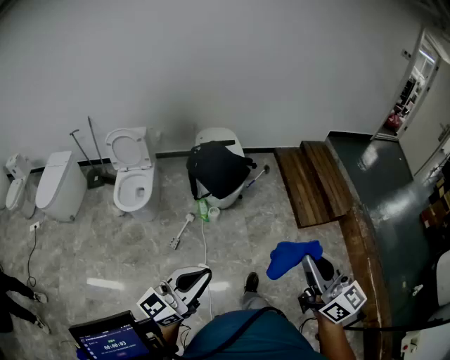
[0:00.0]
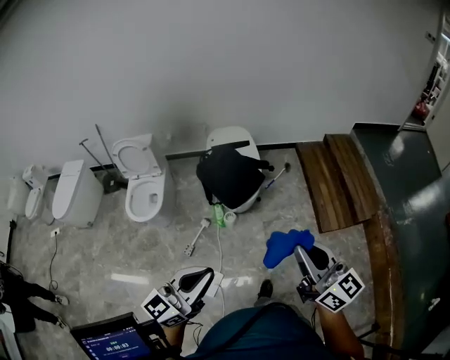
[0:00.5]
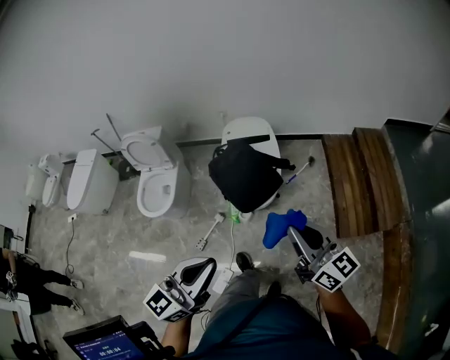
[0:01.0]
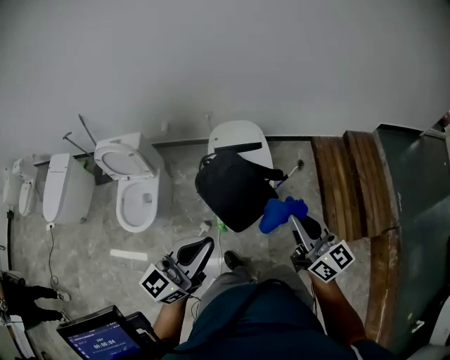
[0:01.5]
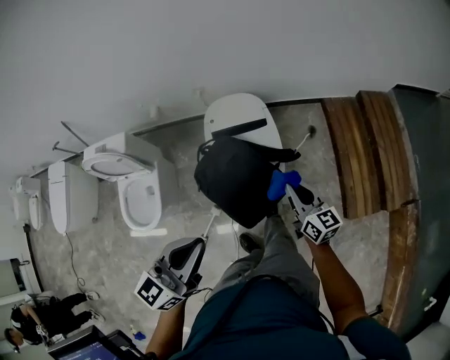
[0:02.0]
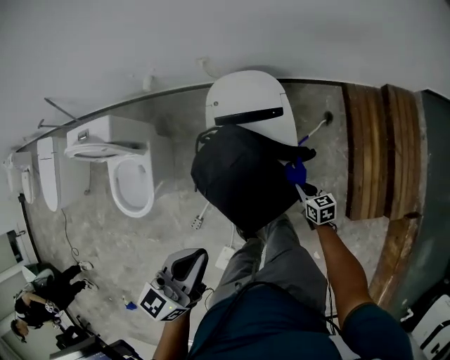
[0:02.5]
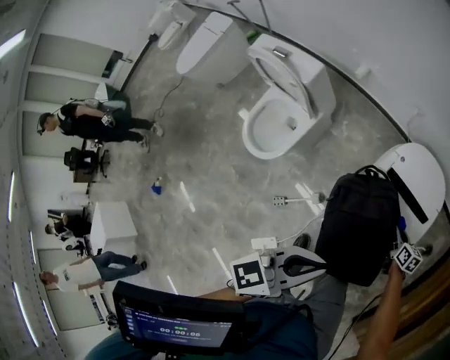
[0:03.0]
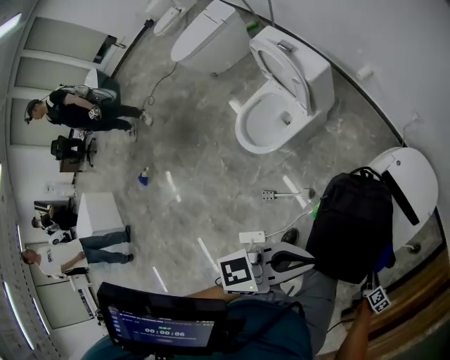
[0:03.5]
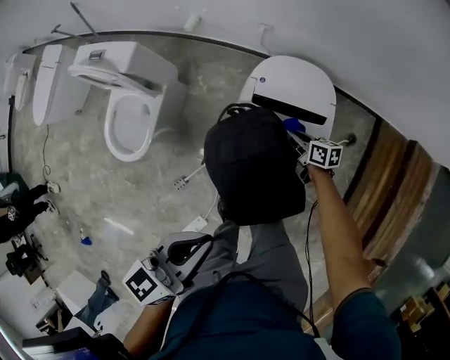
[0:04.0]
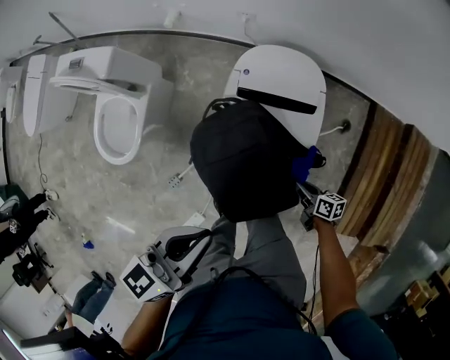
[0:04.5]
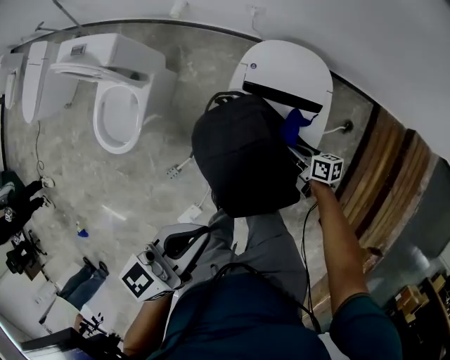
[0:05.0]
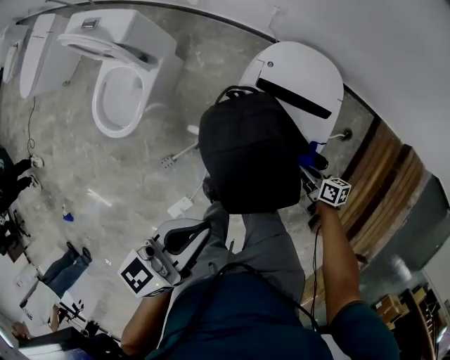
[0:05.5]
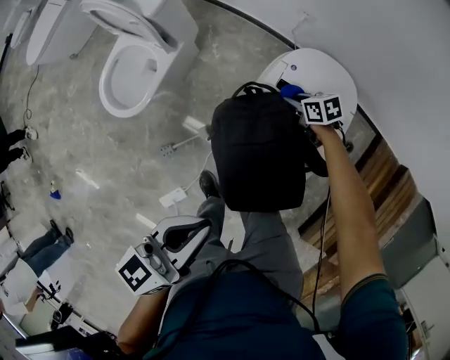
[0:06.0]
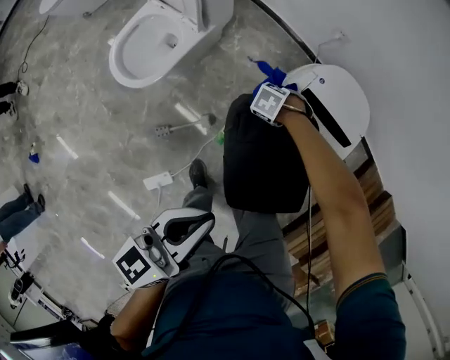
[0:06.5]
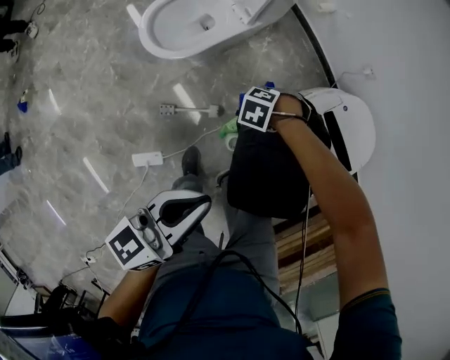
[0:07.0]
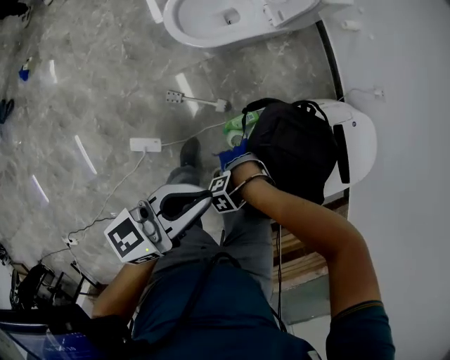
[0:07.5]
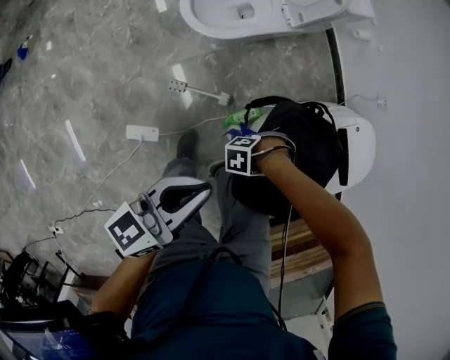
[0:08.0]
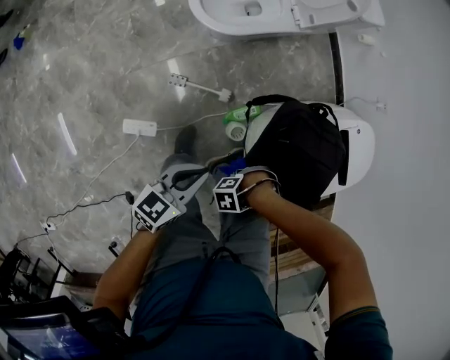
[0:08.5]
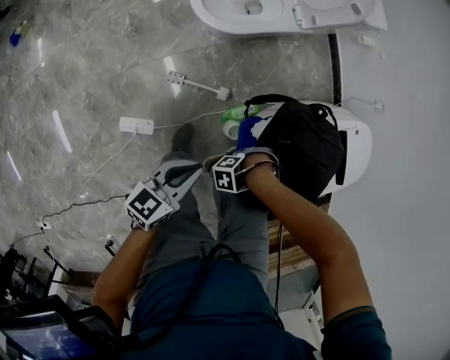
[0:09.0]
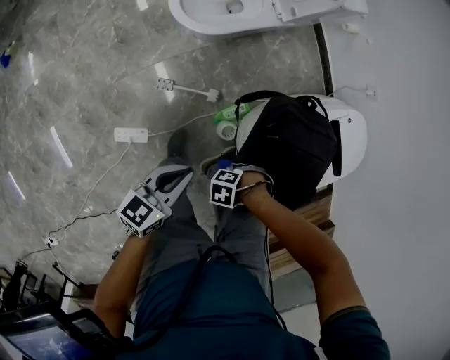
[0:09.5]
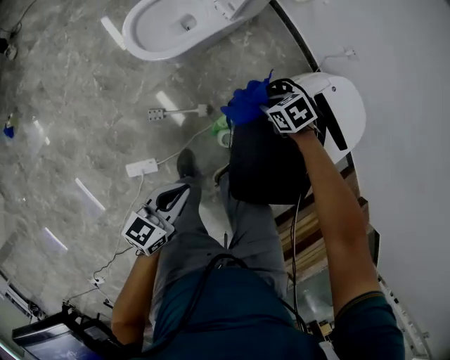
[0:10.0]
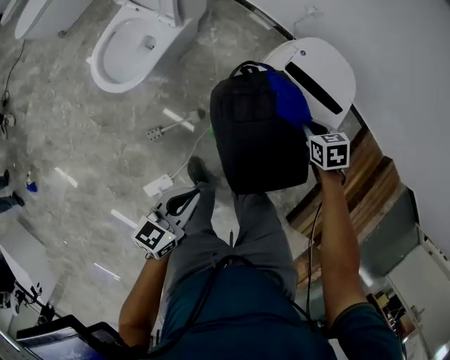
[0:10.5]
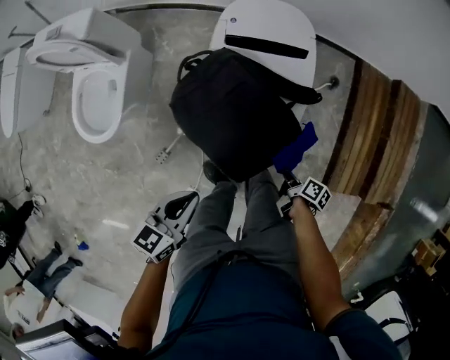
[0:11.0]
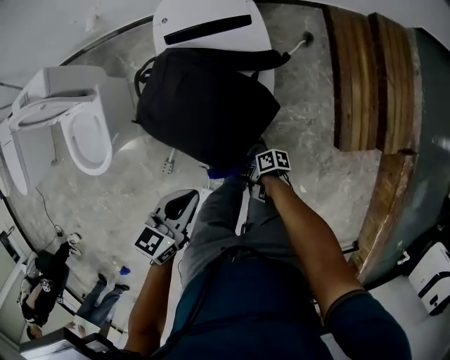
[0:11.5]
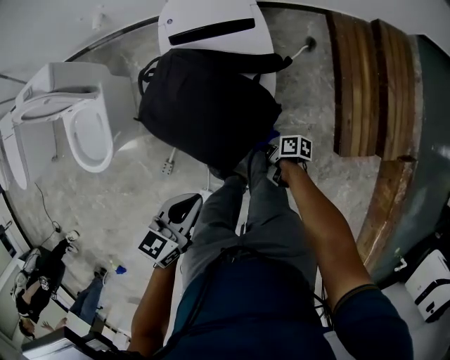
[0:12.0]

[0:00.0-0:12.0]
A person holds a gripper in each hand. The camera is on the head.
0:00.0 to 0:02.0: Both grippers are carried forward, about 70 cm. The left gripper swivels approximately 20 degrees. Meanwhile the right gripper heads downward, covering some 35 cm, and changes its angle by about 20 degrees.
0:02.0 to 0:04.0: The right gripper moves downward, approximately 30 cm, and rotates some 50 degrees; the left gripper moves downward, approximately 10 cm, and swivels roughly 30 degrees.
0:04.0 to 0:06.0: The right gripper swings forward and backward, roughly 30 cm each way, with 3 reversals, and changes its angle by approximately 40 degrees.
0:06.0 to 0:08.0: The right gripper shifts by approximately 35 cm, and rotates some 120 degrees. Meanwhile the left gripper moves some 20 cm, and rotates approximately 30 degrees.
0:08.0 to 0:10.0: The right gripper changes place by about 20 cm, and swivels approximately 80 degrees. The left gripper heads downward, covering roughly 10 cm, and turns by some 20 degrees.
0:10.0 to 0:12.0: The left gripper ends up about 20 cm from where it was, and turns by roughly 50 degrees; the right gripper ends up about 40 cm from where it was, and twists some 110 degrees clockwise, seen from behind.

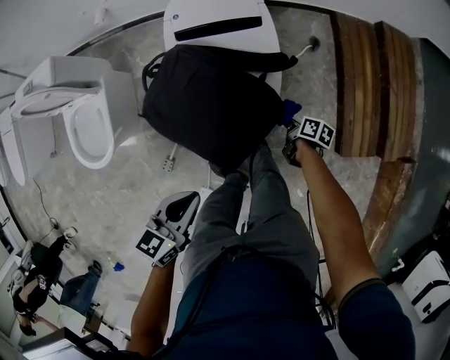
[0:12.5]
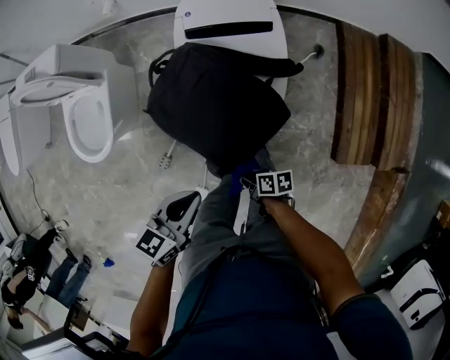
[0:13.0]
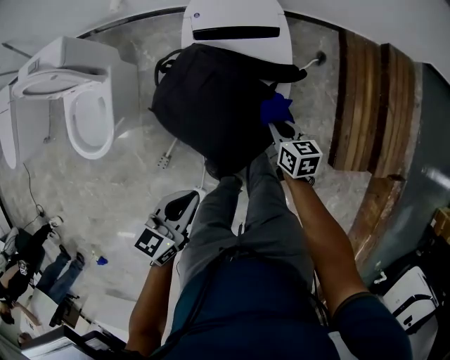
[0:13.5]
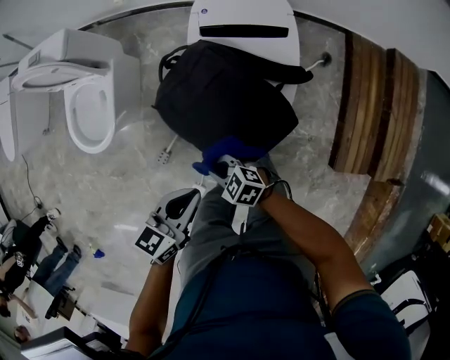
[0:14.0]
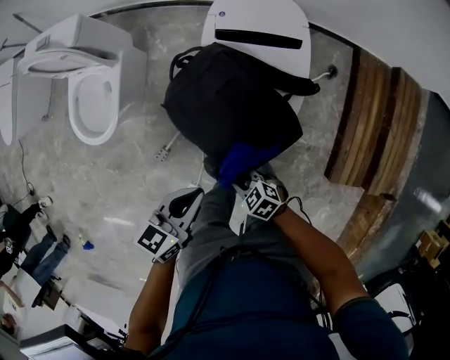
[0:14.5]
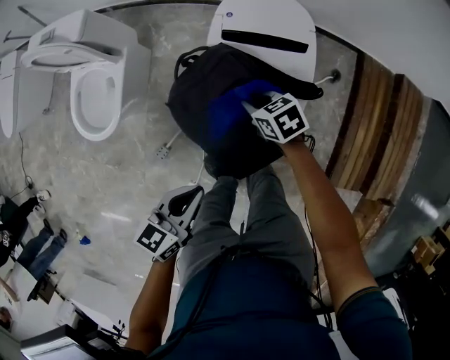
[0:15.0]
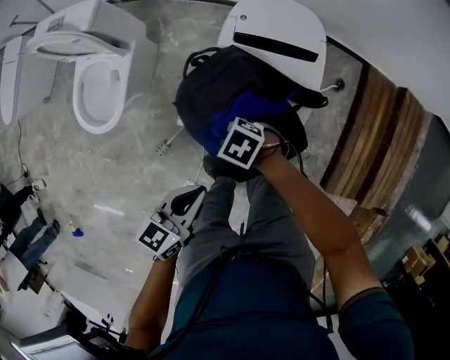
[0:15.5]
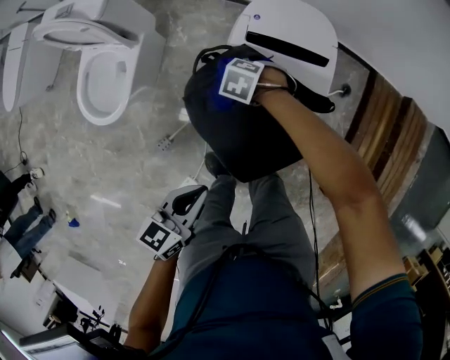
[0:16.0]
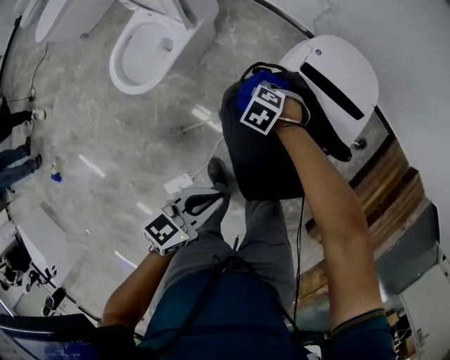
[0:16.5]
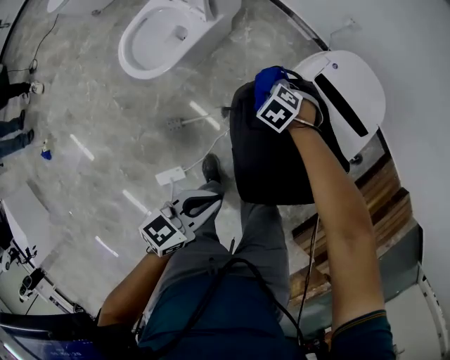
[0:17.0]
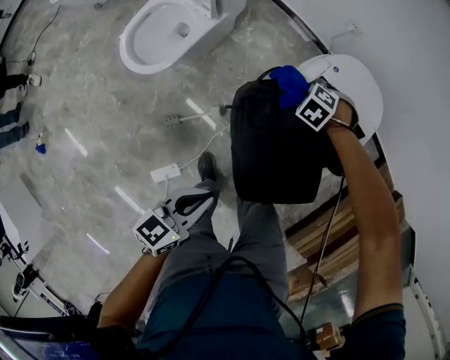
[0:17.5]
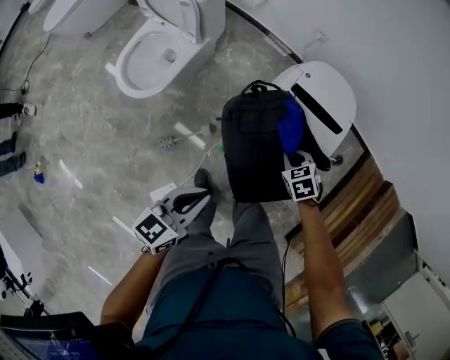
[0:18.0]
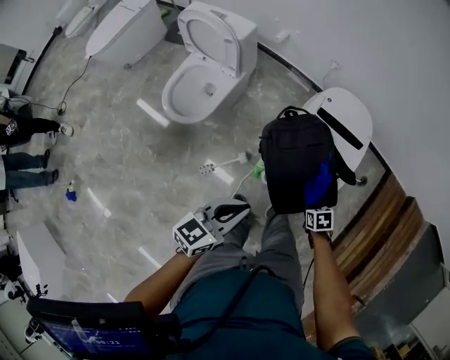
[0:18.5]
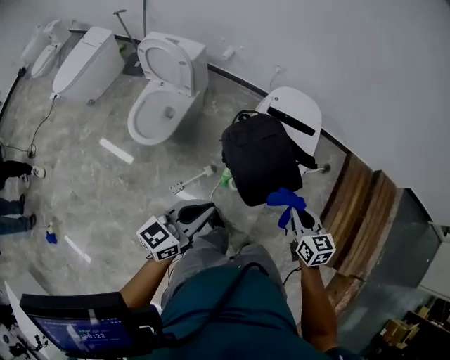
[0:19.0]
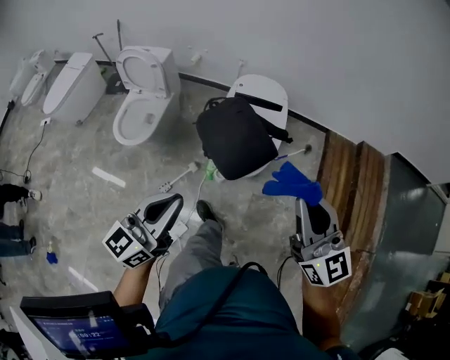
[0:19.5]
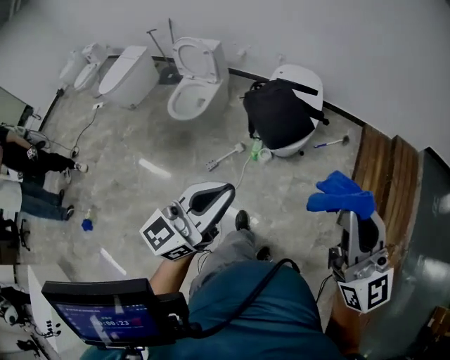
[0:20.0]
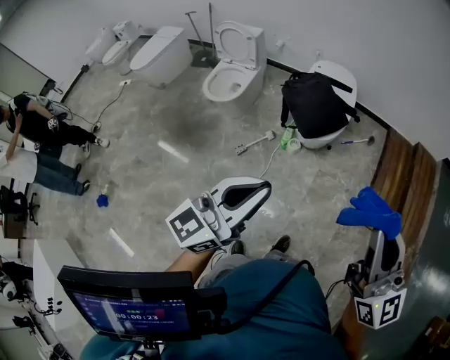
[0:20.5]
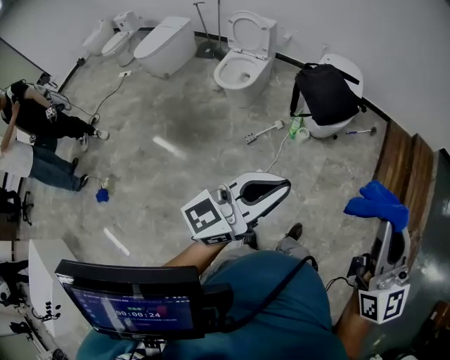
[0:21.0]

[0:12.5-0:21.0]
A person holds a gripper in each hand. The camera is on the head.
0:12.5 to 0:14.5: The right gripper ends up roughly 30 cm from where it was, and rolls counterclockwise, seen from behind, by roughly 90 degrees.
0:14.5 to 0:16.5: The right gripper moves roughly 35 cm, and rotates about 40 degrees.
0:16.5 to 0:19.0: The left gripper heads upward, covering approximately 20 cm, and changes its angle by approximately 20 degrees. The right gripper shifts by some 50 cm, and tilts its fingers roughly 40 degrees upward.
0:19.0 to 0:21.0: Both grippers are carried backward, about 60 cm. The right gripper moves upward, some 40 cm, and tips its fingers upward by some 40 degrees, while the left gripper heads upward, covering some 25 cm, and swivels about 20 degrees.

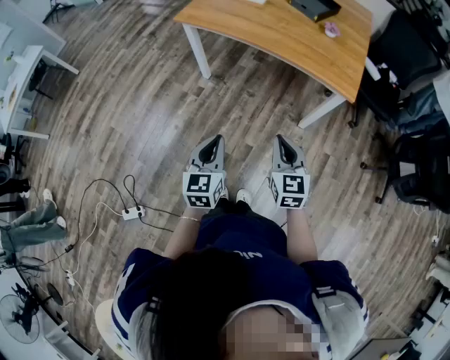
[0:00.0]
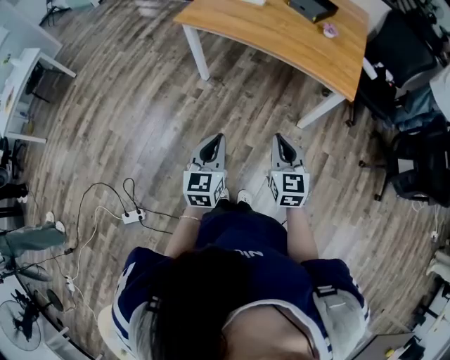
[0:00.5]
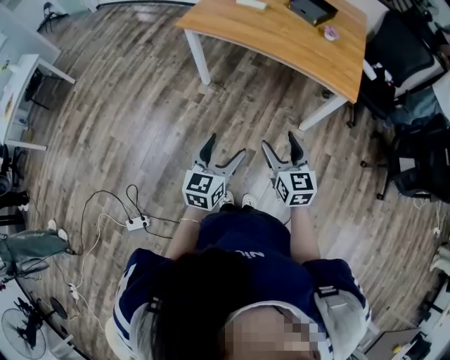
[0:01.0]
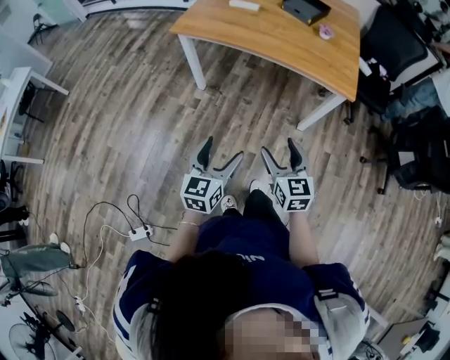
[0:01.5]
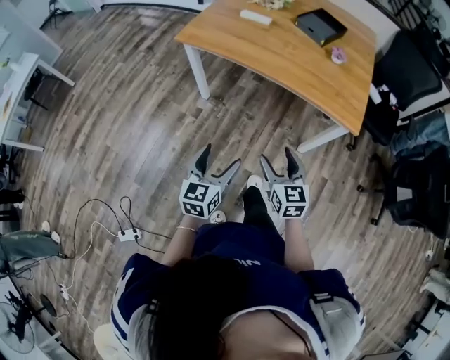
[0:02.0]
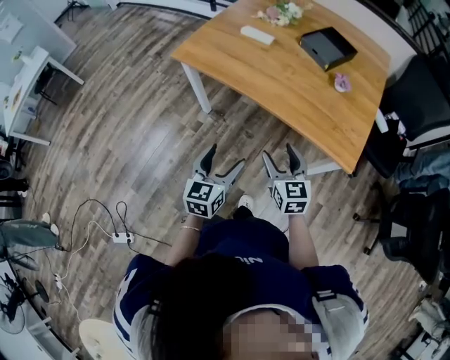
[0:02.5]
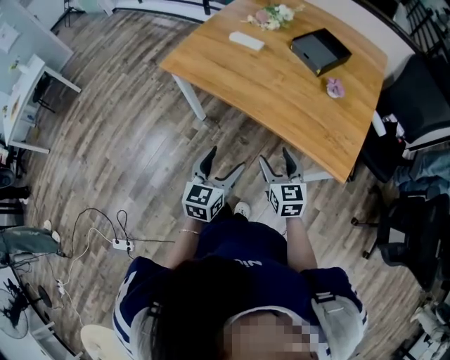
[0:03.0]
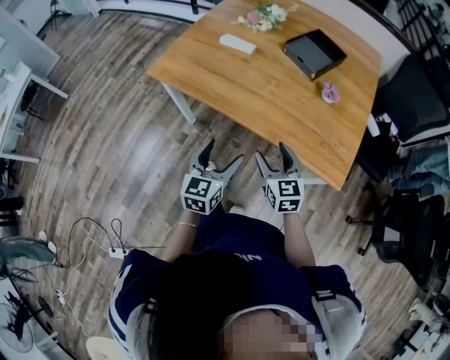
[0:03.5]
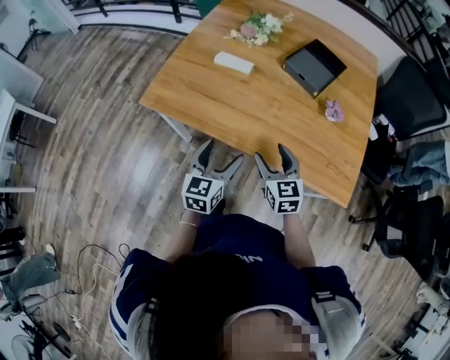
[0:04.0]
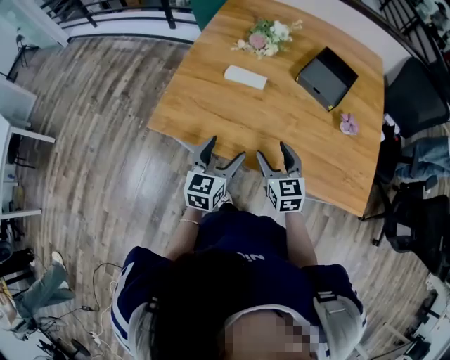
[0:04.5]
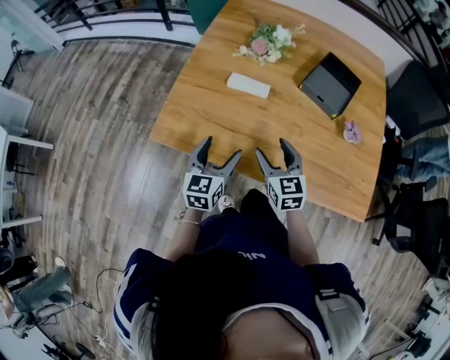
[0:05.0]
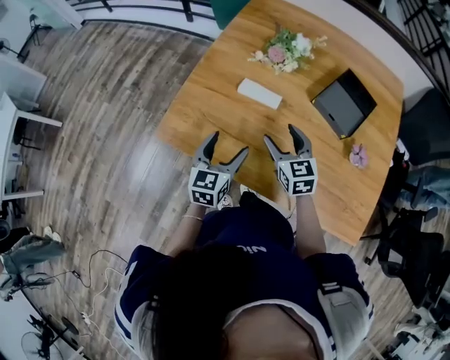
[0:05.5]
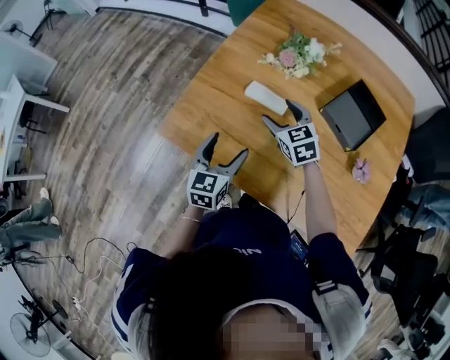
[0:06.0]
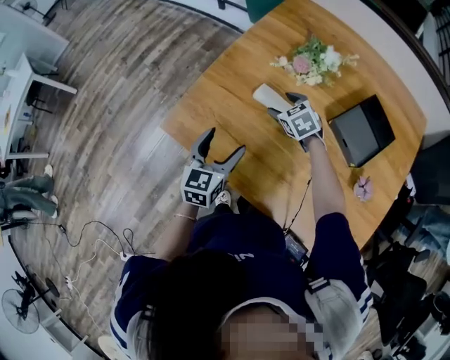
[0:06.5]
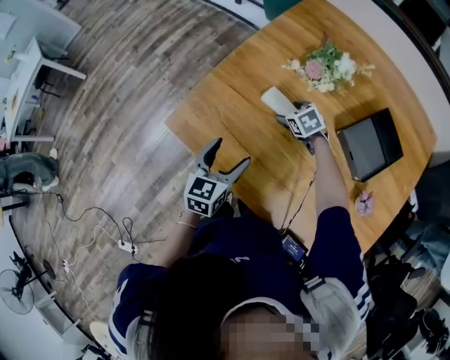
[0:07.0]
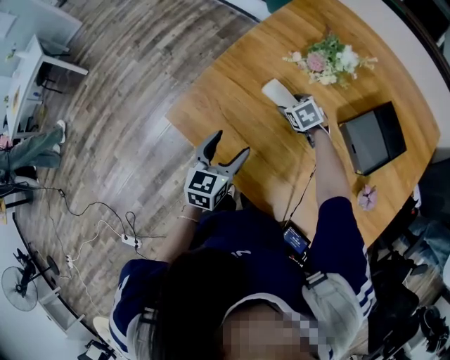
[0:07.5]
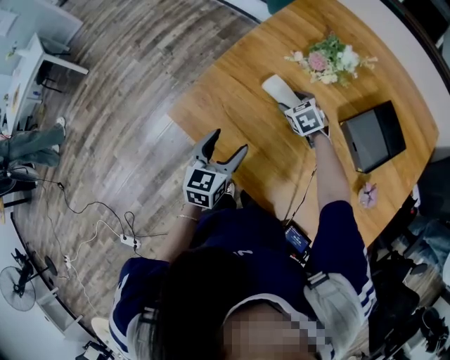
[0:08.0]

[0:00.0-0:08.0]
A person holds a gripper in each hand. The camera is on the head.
0:00.0 to 0:02.0: Both grippers travel together forward, some 10 cm. The left gripper opens up. Meanwhile the right gripper opens up.
0:02.0 to 0:04.0: The grippers both shift forward by about 35 cm.
0:04.0 to 0:06.0: The right gripper shifts roughly 30 cm forward, and turns by roughly 20 degrees. The left gripper shifts some 20 cm forward and to the left.
0:06.0 to 0:08.0: The right gripper is displaced downward and forward by roughly 15 cm, and changes its angle by roughly 20 degrees.
